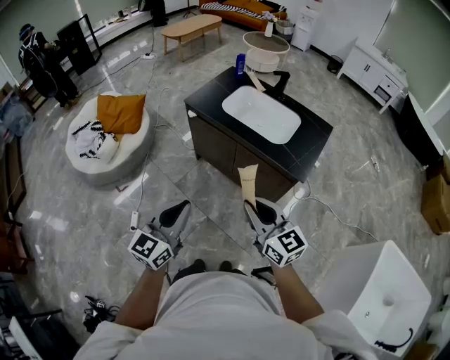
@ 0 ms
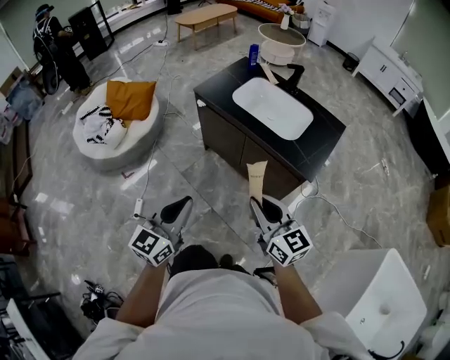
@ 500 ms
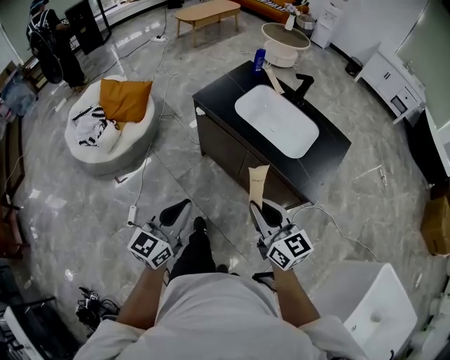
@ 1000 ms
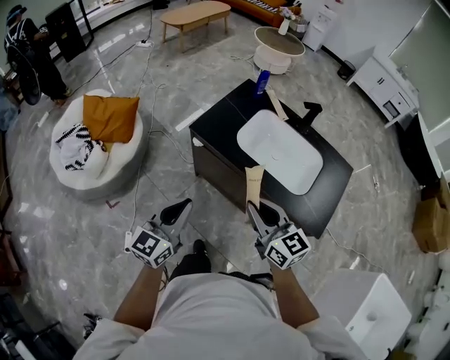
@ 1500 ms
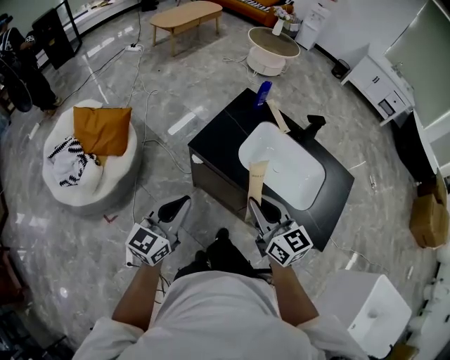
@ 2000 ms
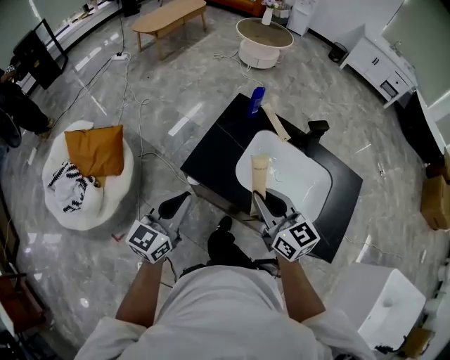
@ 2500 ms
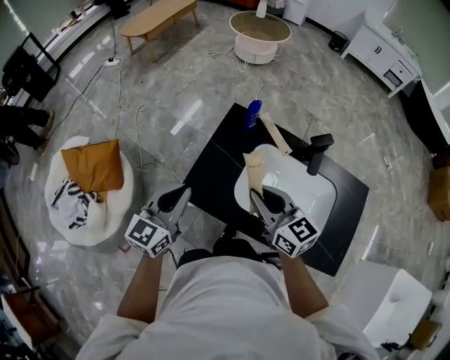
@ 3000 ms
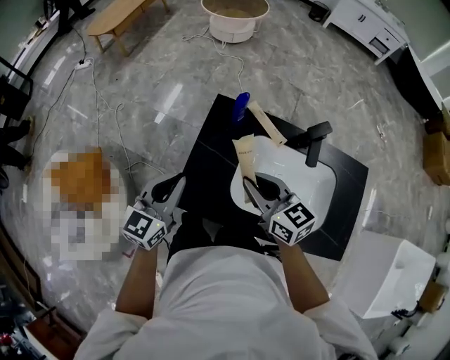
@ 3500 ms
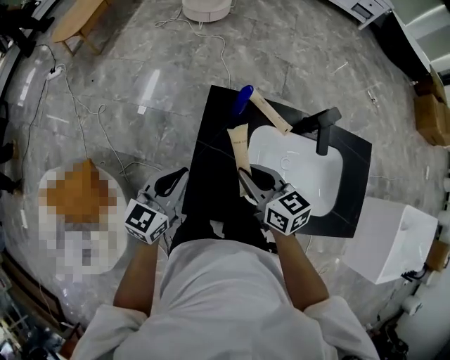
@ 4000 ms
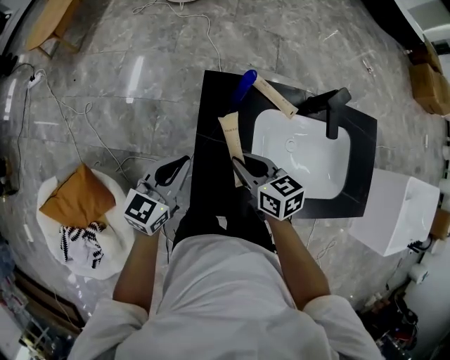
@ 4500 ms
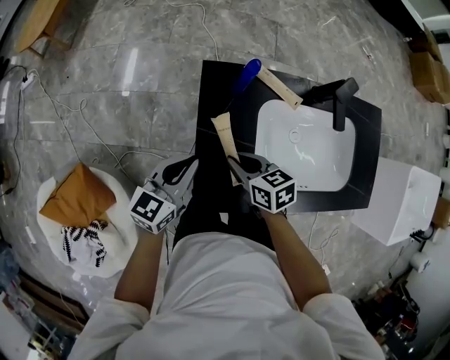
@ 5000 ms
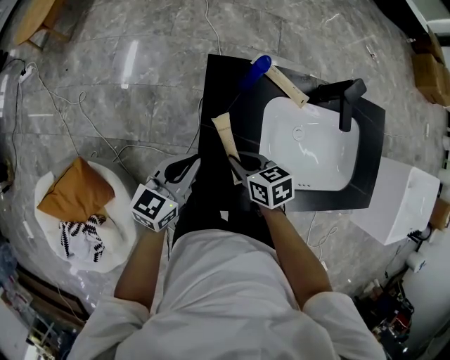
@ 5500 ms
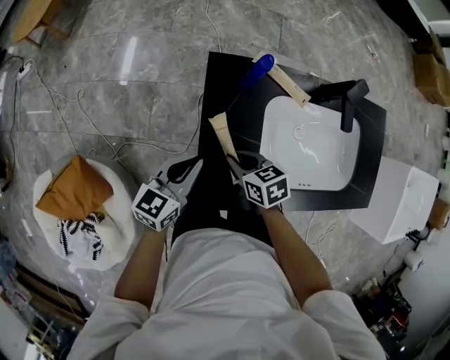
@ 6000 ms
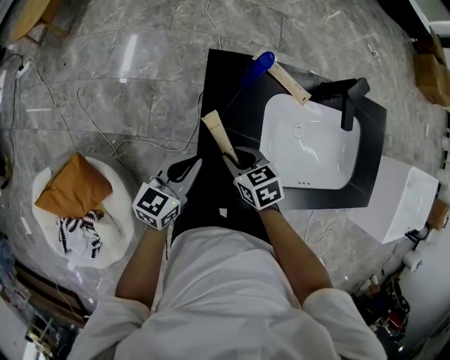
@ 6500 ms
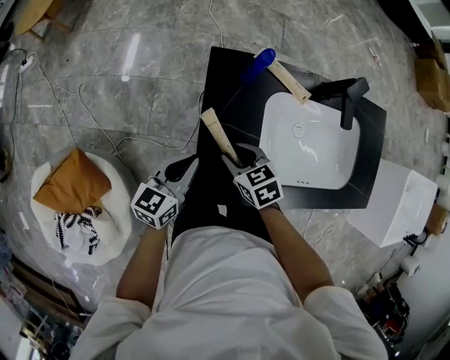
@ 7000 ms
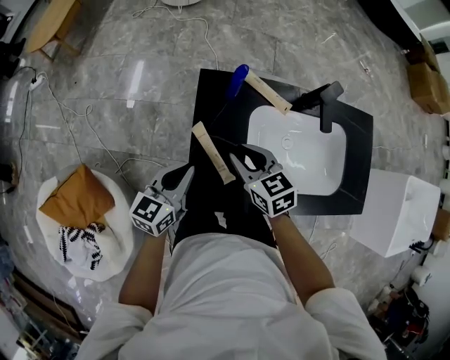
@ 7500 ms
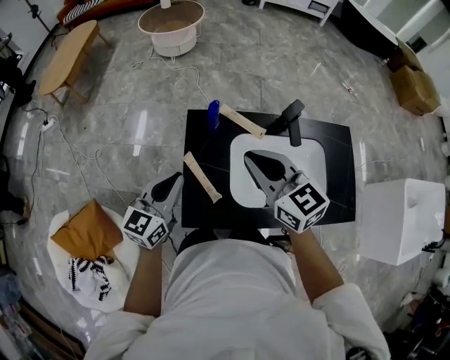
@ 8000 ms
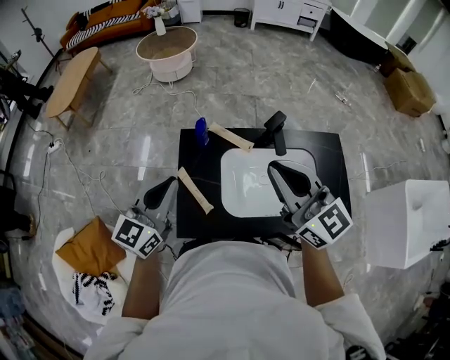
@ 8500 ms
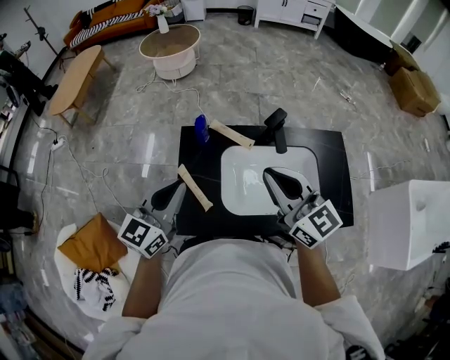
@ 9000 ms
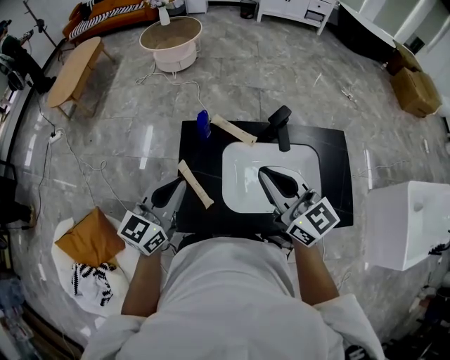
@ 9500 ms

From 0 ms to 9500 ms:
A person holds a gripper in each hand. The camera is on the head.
From 0 ms to 2000 ms: The pair of grippers is taken forward, about 40 cm.
From 2000 ms to 4000 ms: The two grippers go some 40 cm forward. The left gripper rotates roughly 30 degrees. Meanwhile the right gripper changes its angle by some 30 degrees.
From 4000 ms to 5500 ms: The left gripper moves downward, roughly 10 cm. The right gripper moves downward, roughly 15 cm, and turns by roughly 30 degrees.
From 5500 ms to 7500 ms: The right gripper moves upward, approximately 10 cm, and changes its angle by approximately 20 degrees.
From 7500 ms to 9500 ms: The left gripper shifts some 20 cm upward. The right gripper is displaced upward and to the right by some 30 cm, points its fingers roughly 40 degrees further upward, and closes.

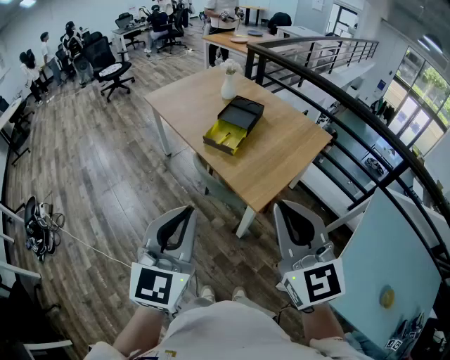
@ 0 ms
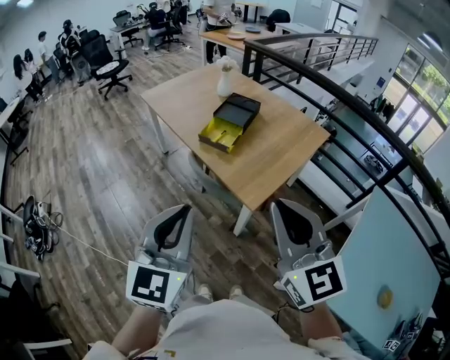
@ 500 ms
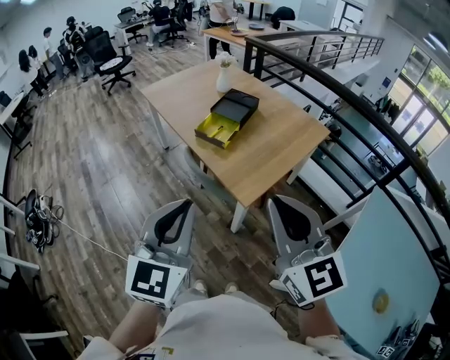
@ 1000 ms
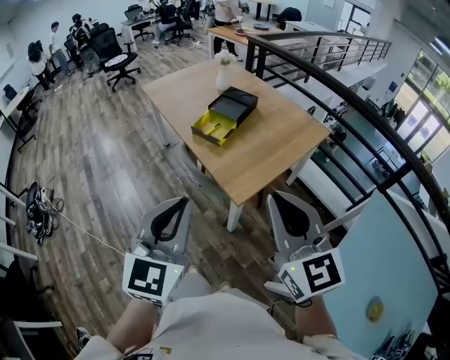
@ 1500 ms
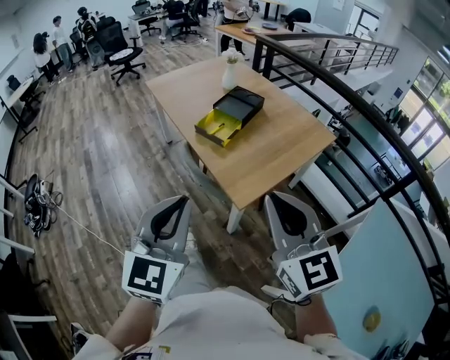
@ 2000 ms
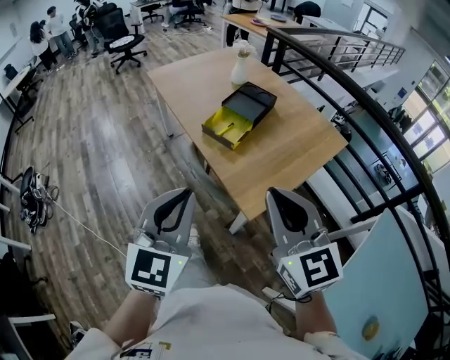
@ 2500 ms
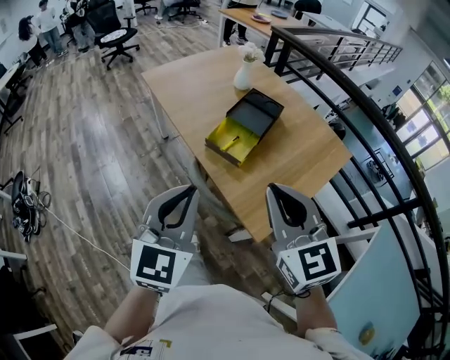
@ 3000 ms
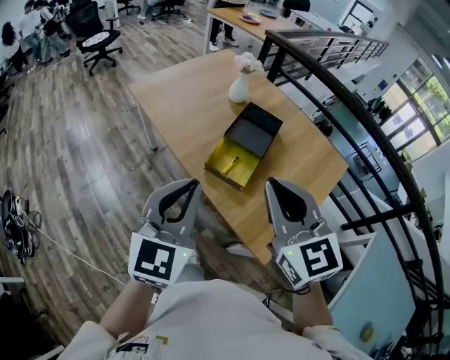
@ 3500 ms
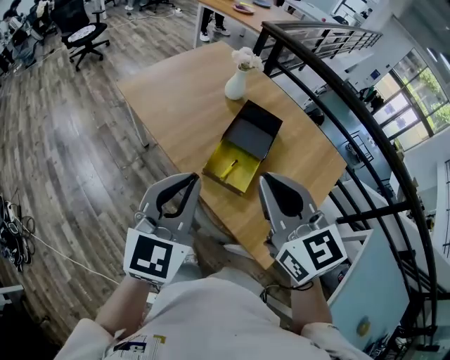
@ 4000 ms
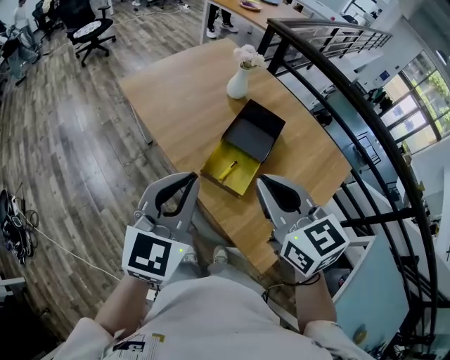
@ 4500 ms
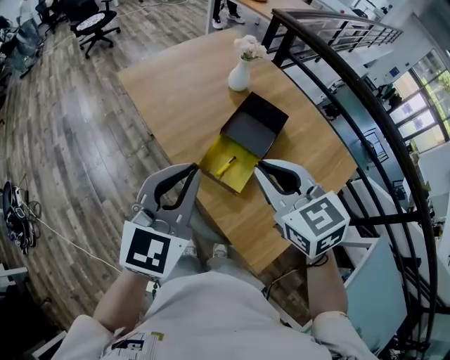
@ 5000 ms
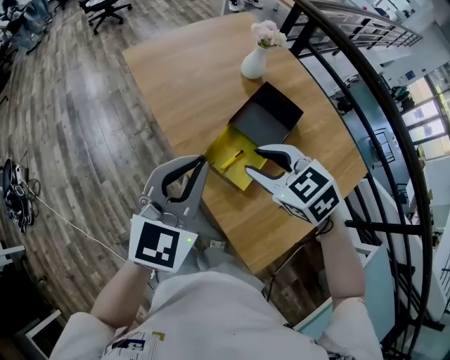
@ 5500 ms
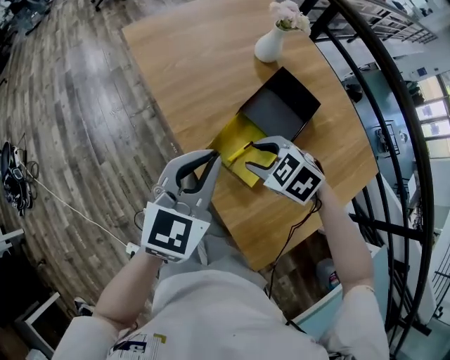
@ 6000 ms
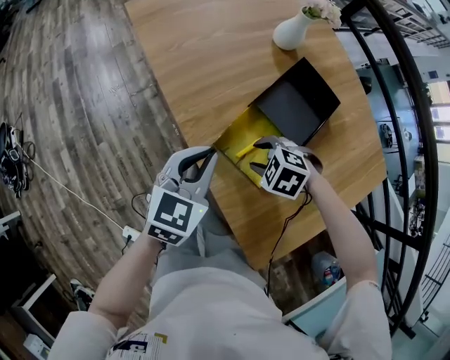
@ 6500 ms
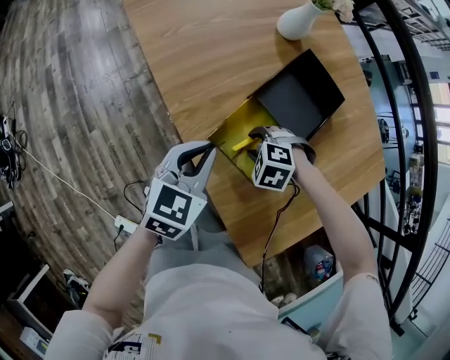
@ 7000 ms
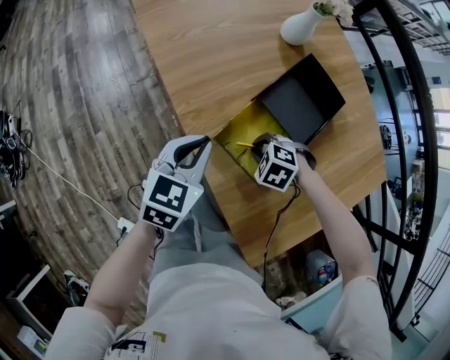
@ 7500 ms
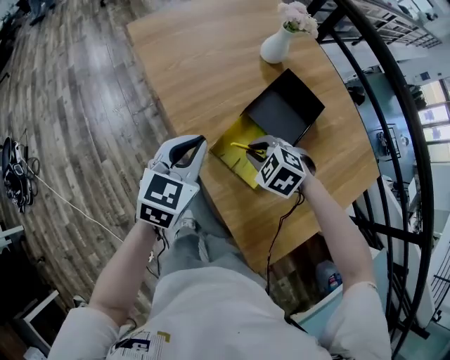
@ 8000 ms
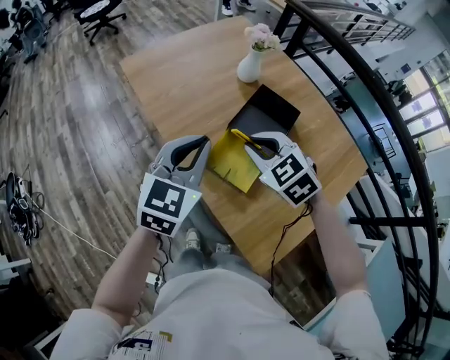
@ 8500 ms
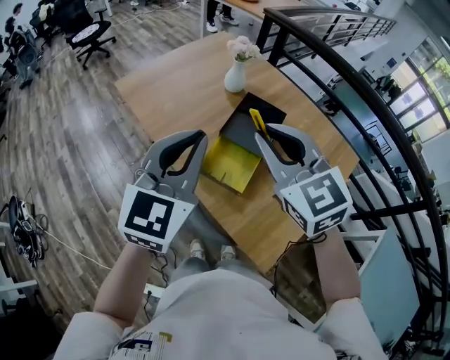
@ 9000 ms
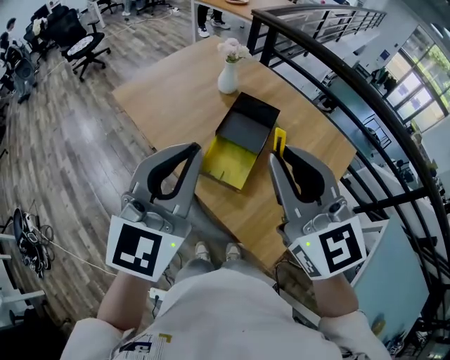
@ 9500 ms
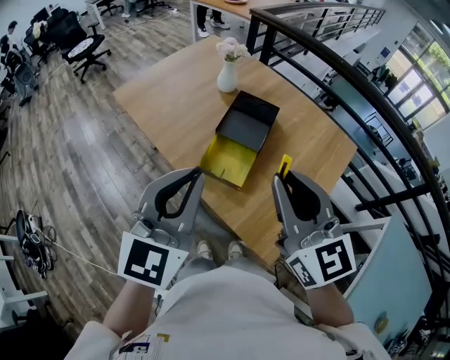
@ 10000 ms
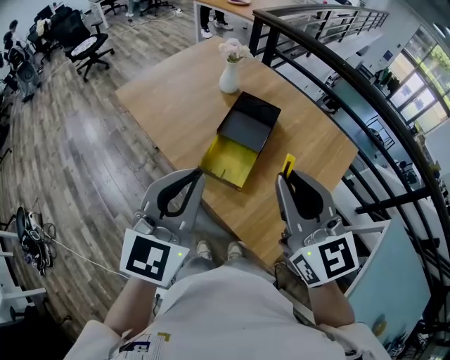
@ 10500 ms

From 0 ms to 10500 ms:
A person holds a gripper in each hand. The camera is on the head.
From 0 ms to 2000 ms: Both grippers move to the right, about 10 cm.
From 2000 ms to 4000 ms: Both grippers are carried forward and to the left, about 50 cm.
From 4000 ms to 6500 ms: The right gripper shifts approximately 40 cm downward, tilts its fingers roughly 60 degrees downward, and opens; the left gripper moves downward, about 25 cm, and rotates roughly 20 degrees.
From 6500 ms to 8500 ms: Both grippers travel together upward, some 20 cm. The right gripper points its fingers some 30 degrees further upward, and closes its fingers.
From 8500 ms to 10500 ms: The left gripper shifts roughly 20 cm backward and upward. The right gripper travels upward, backward and to the right by roughly 30 cm, and points its fingers about 40 degrees further upward.

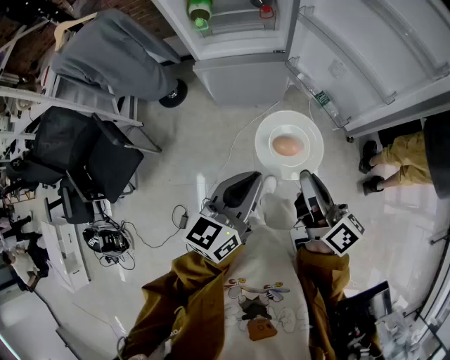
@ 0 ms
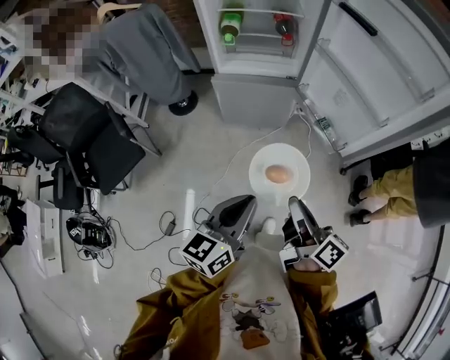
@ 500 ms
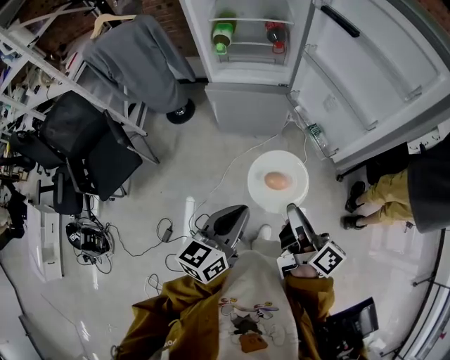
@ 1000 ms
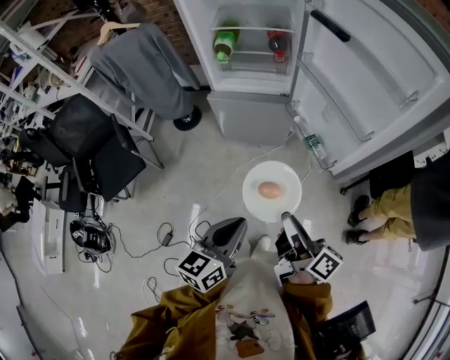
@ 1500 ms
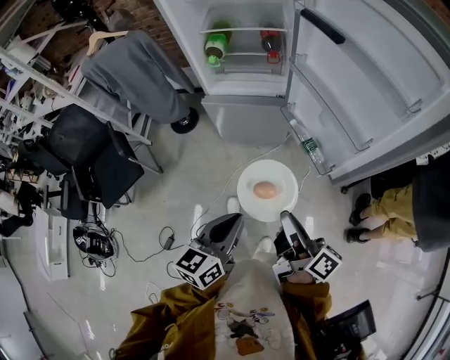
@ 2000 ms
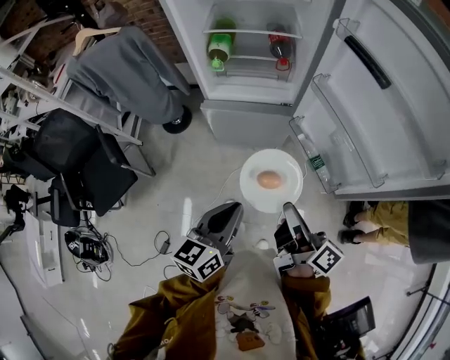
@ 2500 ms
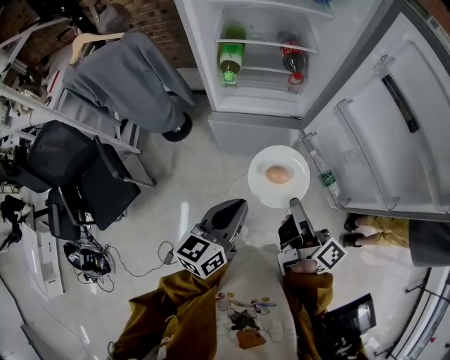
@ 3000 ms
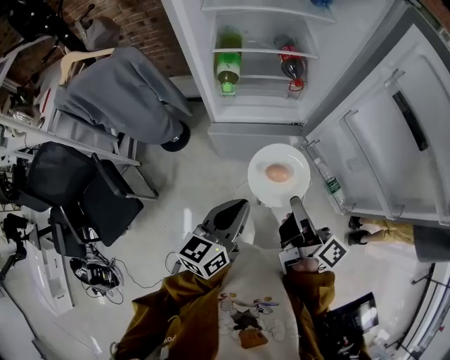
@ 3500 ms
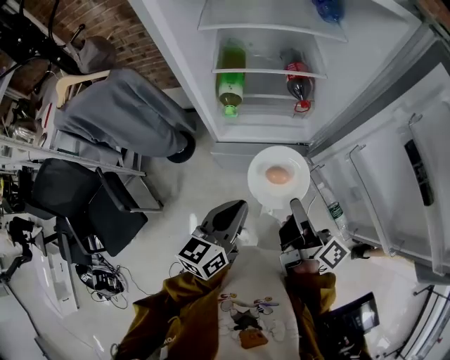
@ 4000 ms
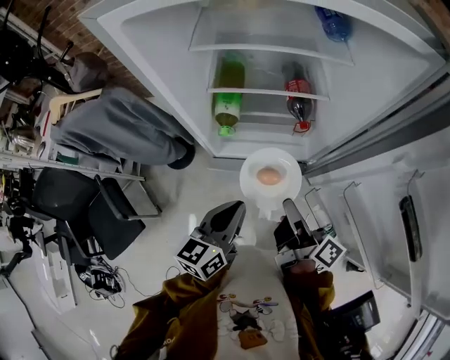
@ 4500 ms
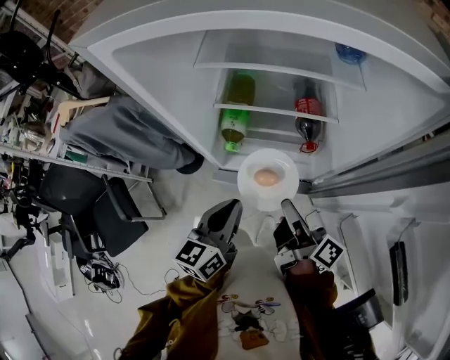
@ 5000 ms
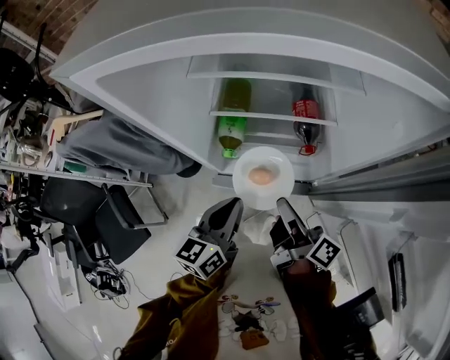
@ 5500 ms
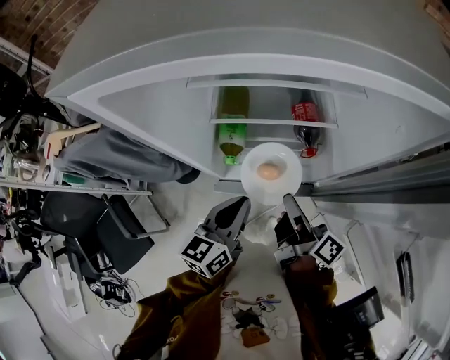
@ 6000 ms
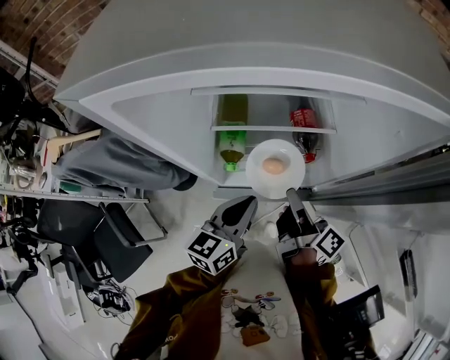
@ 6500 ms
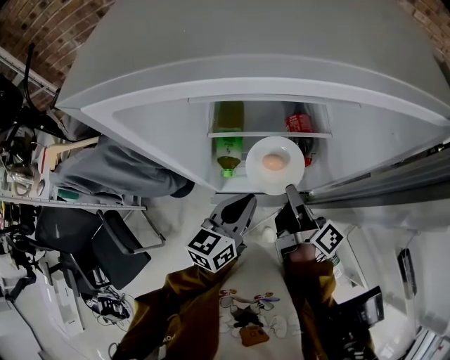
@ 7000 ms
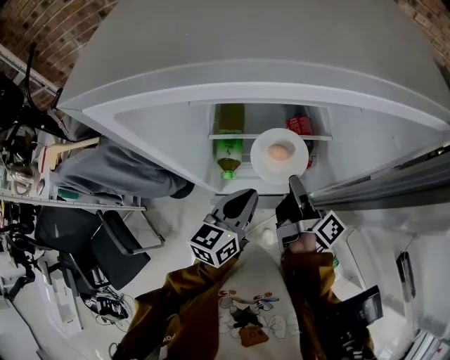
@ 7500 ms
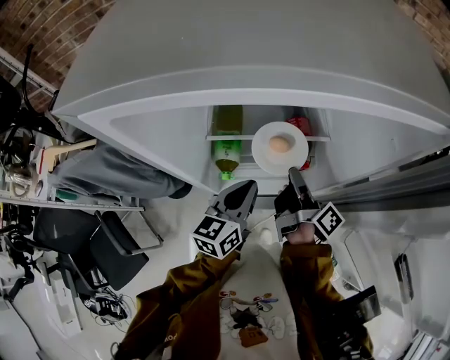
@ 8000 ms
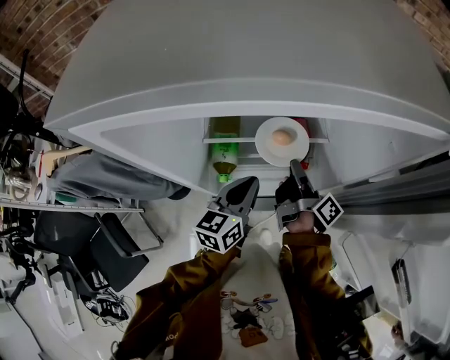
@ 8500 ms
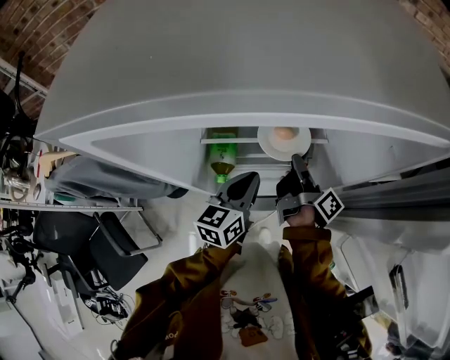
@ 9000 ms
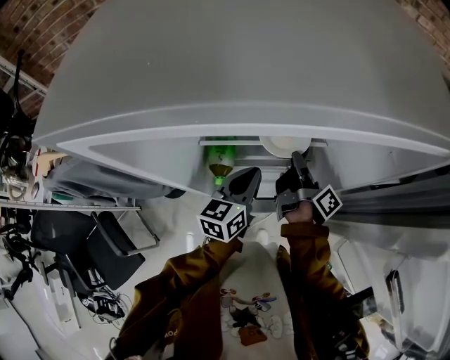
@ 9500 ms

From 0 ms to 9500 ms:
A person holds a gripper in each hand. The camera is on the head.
From 2000 ms to 4000 ms: The left gripper moves some 35 cm.
From 4000 ms to 5500 ms: The left gripper shifts by approximately 15 cm.
From 5500 ms to 7500 ms: The left gripper changes place by some 10 cm.
From 7500 ms to 9500 ms: The left gripper ends up approximately 10 cm from where it was.
